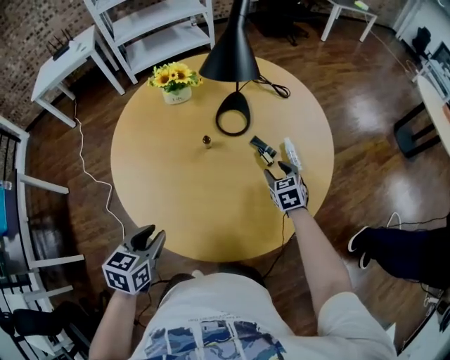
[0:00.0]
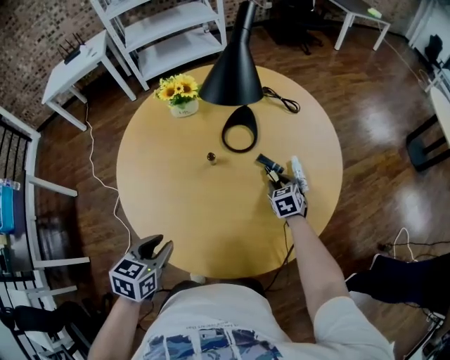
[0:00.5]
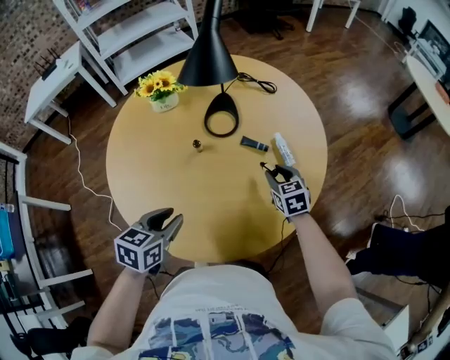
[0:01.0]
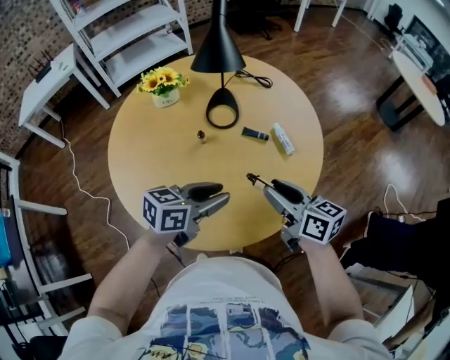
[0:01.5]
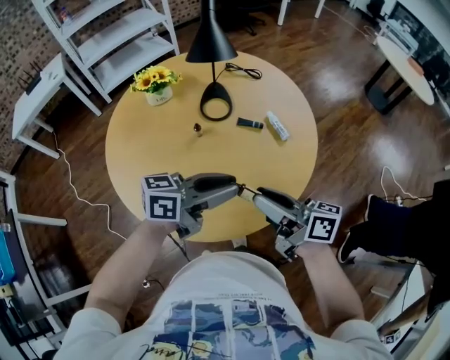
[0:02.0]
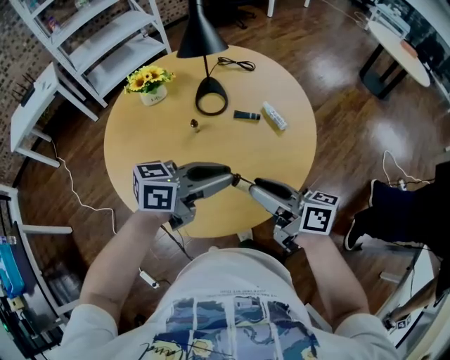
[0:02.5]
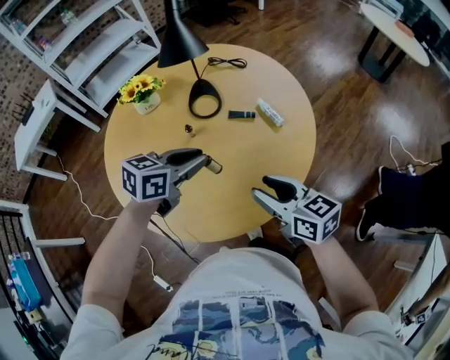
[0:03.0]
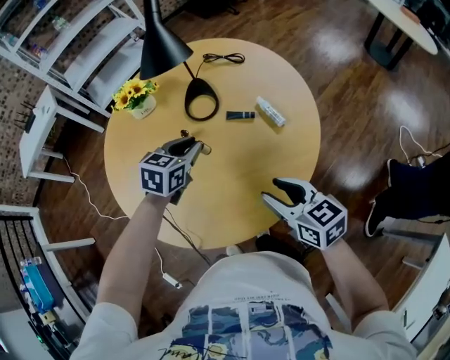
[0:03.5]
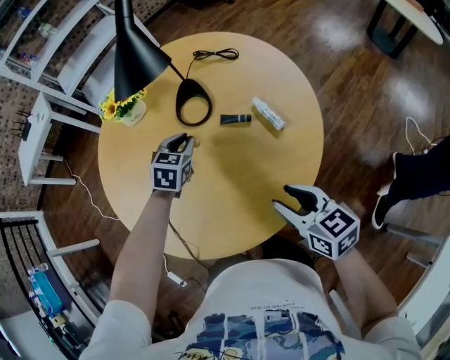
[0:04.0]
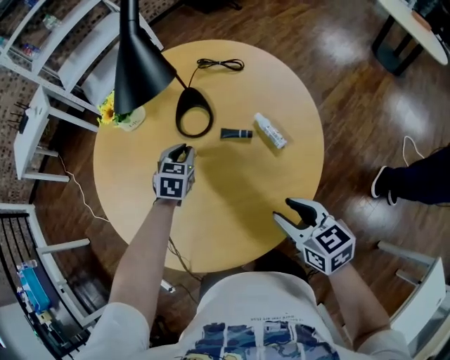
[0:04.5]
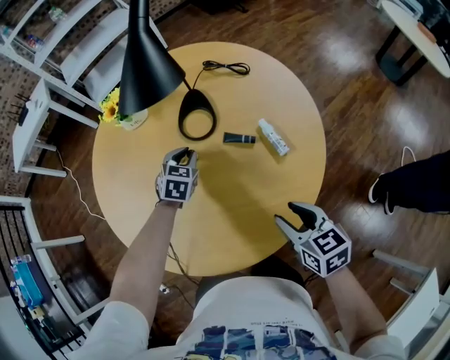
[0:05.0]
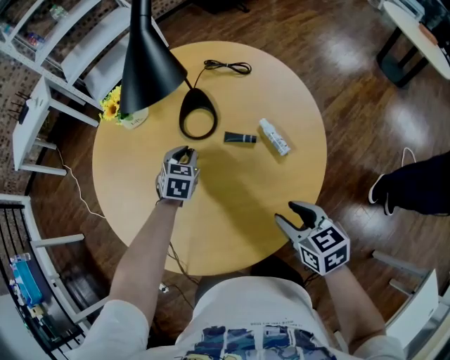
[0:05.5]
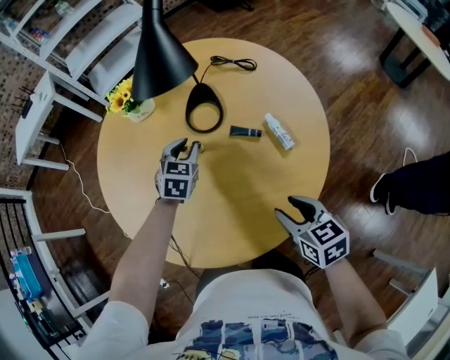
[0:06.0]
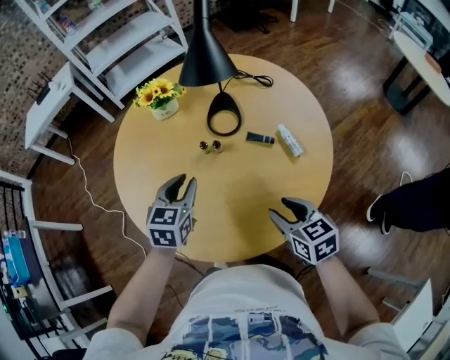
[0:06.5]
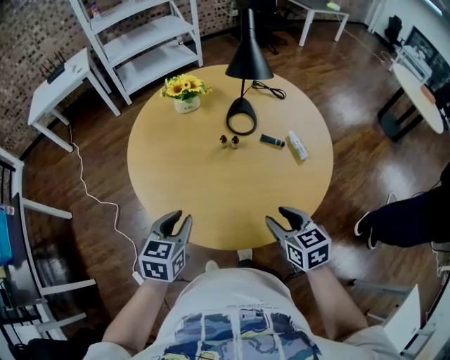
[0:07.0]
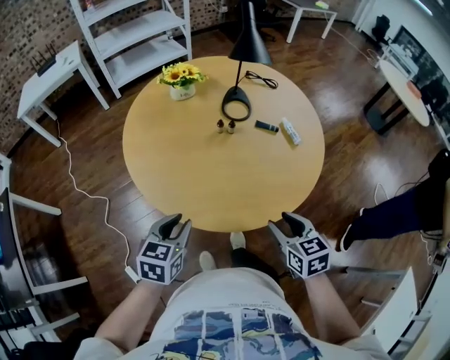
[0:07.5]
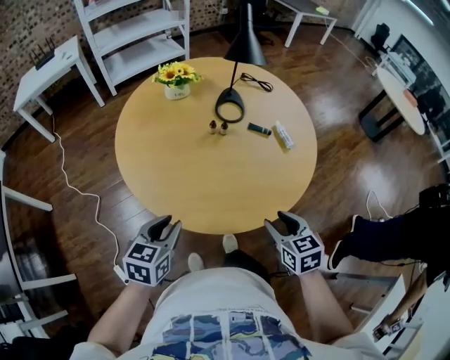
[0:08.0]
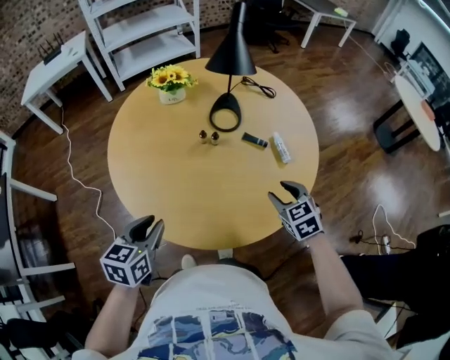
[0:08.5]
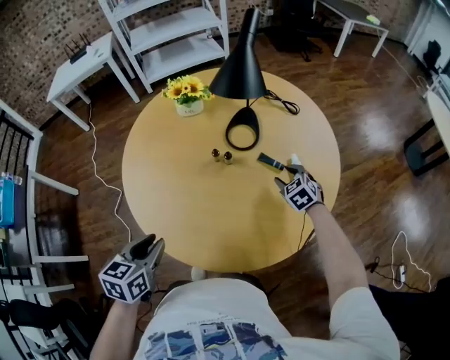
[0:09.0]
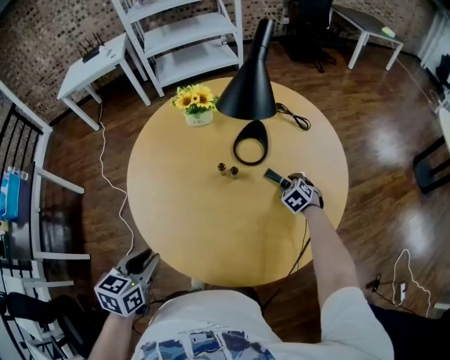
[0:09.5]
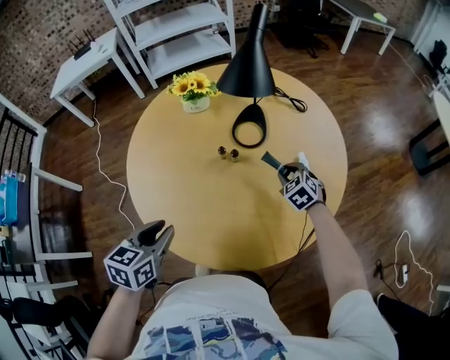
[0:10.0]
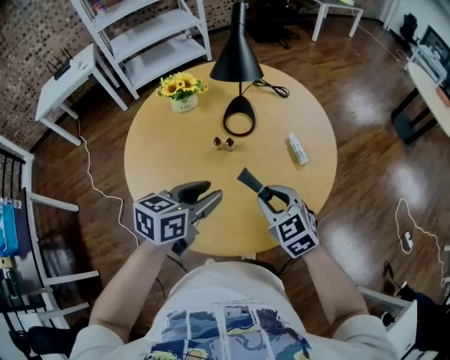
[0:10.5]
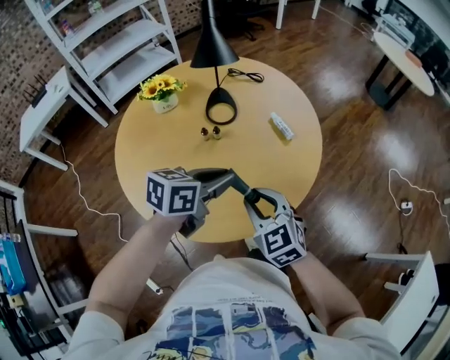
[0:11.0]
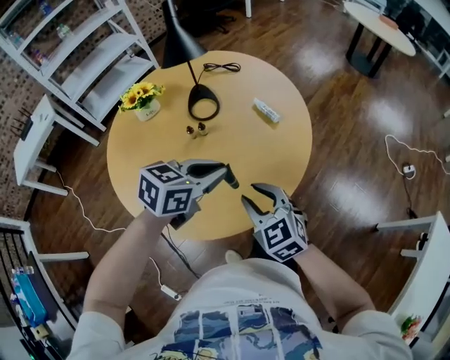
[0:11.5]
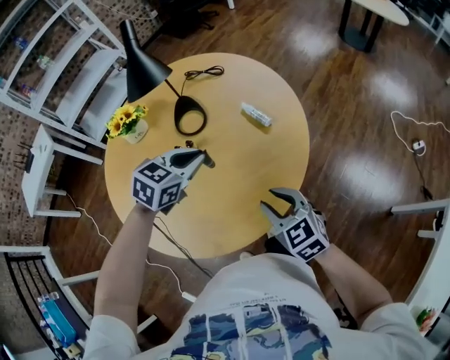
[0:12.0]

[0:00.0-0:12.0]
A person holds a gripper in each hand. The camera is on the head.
0:00.0 to 0:02.0: The left gripper goes about 20 cm to the right and upward, and angles its fingers upward, by roughly 40 degrees, while the right gripper shifts about 35 cm backward and upward, and tips its fingers upward by about 40 degrees.
0:02.0 to 0:04.0: The left gripper shifts some 30 cm forward and downward, and tilts its fingers some 40 degrees downward; the right gripper shifts approximately 20 cm to the right, downward and forward, and swivels some 40 degrees.
0:06.0 to 0:08.0: The left gripper goes about 50 cm backward and to the left, and changes its angle by about 30 degrees; the right gripper shifts roughly 25 cm backward and to the left.
0:08.0 to 0:10.0: The left gripper heads forward and to the right, covering about 15 cm; the right gripper goes some 35 cm forward, swivels some 40 degrees, and closes.
0:10.0 to 0:12.0: The right gripper ends up approximately 30 cm from where it was, and changes its angle by approximately 40 degrees. Meanwhile the left gripper moves some 25 cm, and rotates approximately 60 degrees.

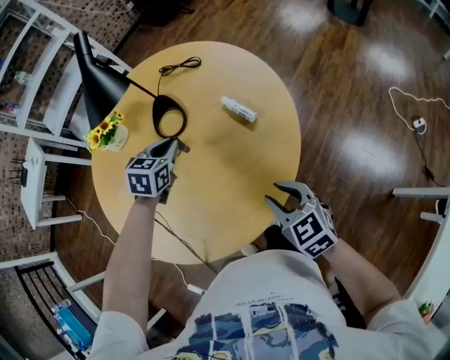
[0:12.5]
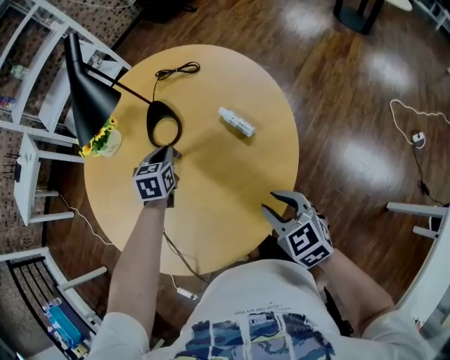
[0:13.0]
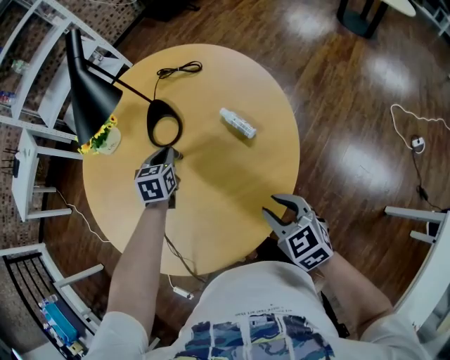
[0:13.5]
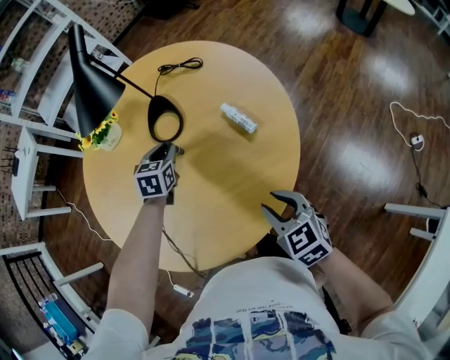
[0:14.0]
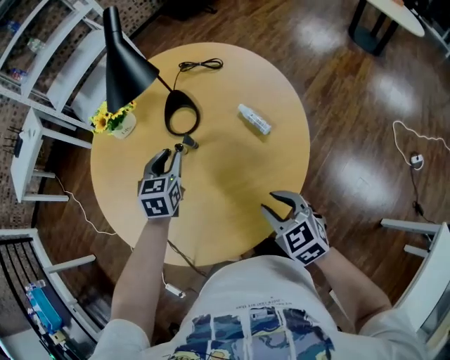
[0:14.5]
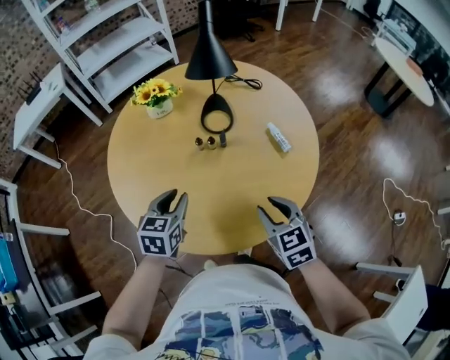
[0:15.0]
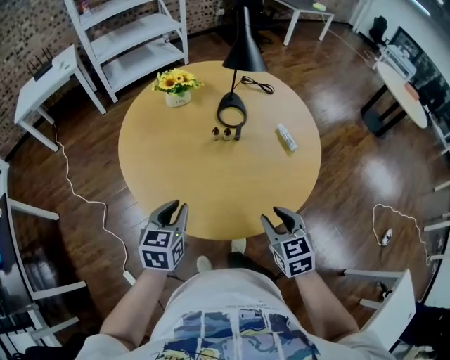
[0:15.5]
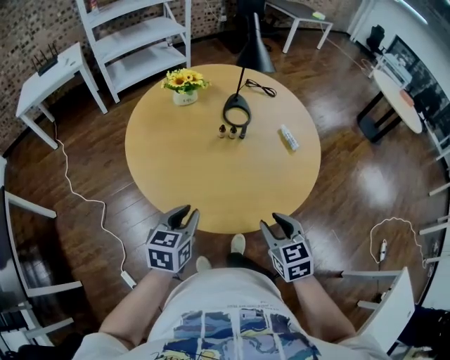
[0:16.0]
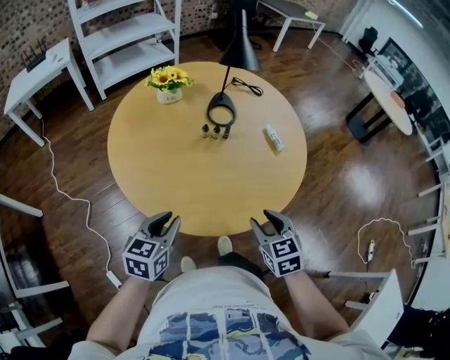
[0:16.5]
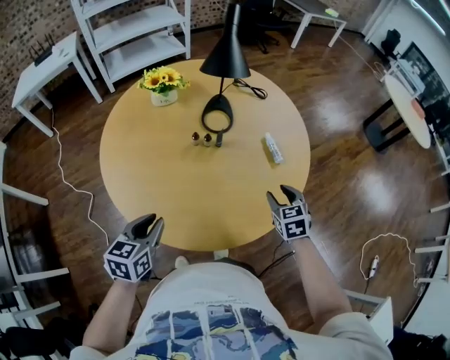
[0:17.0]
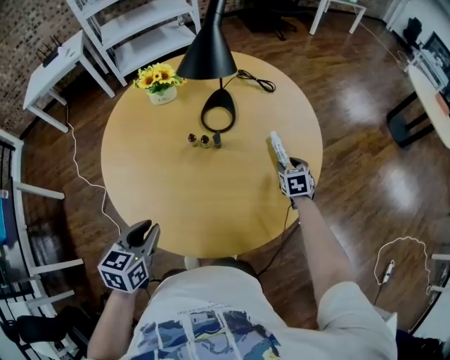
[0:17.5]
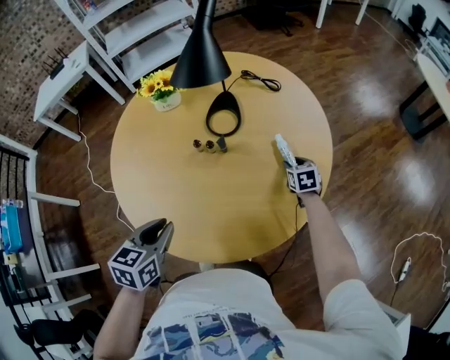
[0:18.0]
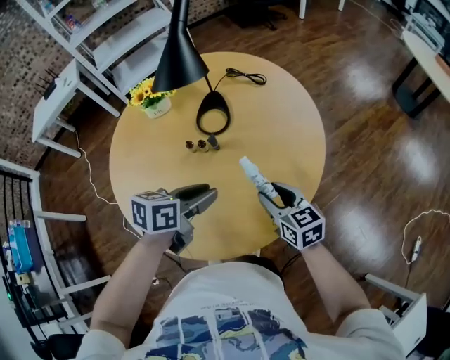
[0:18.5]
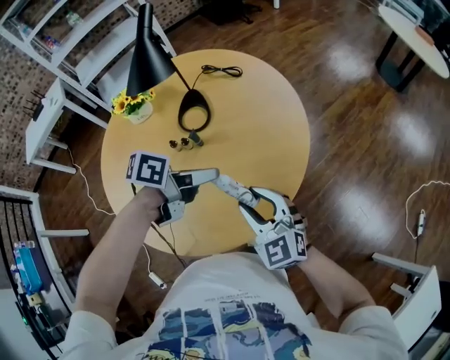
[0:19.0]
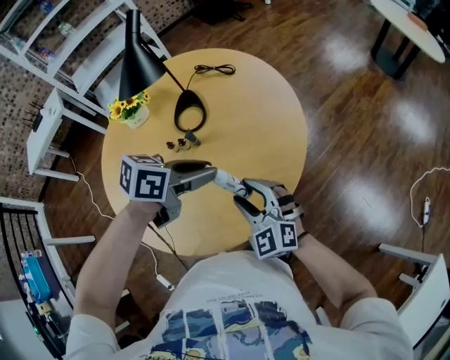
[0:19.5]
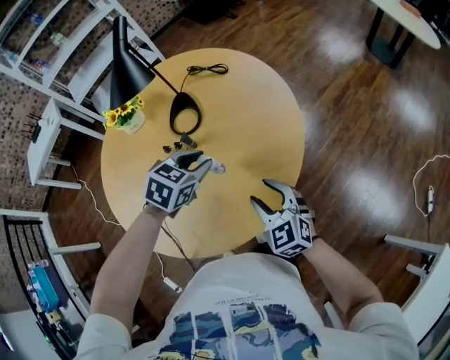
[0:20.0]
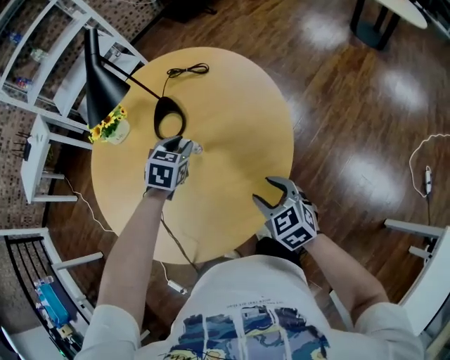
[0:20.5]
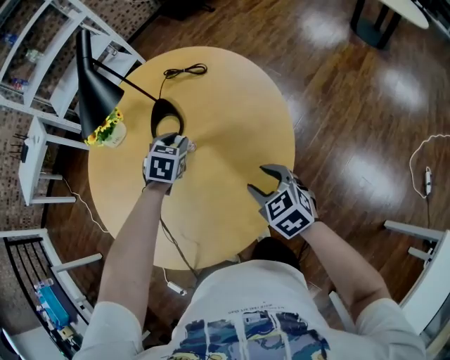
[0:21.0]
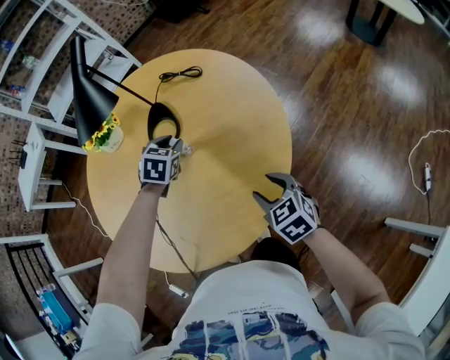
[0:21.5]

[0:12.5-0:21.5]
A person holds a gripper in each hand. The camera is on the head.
0:12.5 to 0:14.5: The left gripper heads to the left, covering roughly 5 cm, rotates some 20 degrees, and opens its fingers.
0:14.5 to 0:17.0: The right gripper goes backward and returns, roughly 15 cm each way. Meanwhile the left gripper heads backward and to the left, covering some 35 cm, and swivels approximately 20 degrees.
0:17.0 to 0:19.5: The right gripper moves some 15 cm downward and comes back, and turns by about 40 degrees. Meanwhile the left gripper moves roughly 35 cm, and turns by about 50 degrees.
0:19.5 to 0:21.5: The left gripper ends up roughly 25 cm from where it was, and swivels some 50 degrees, while the right gripper moves some 15 cm, and swivels approximately 40 degrees.

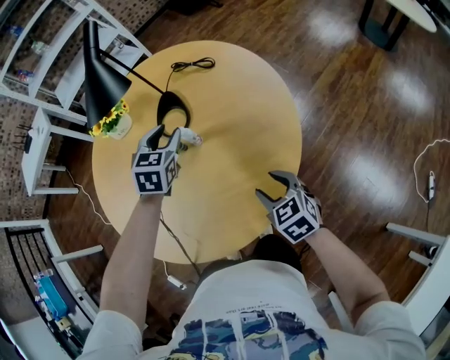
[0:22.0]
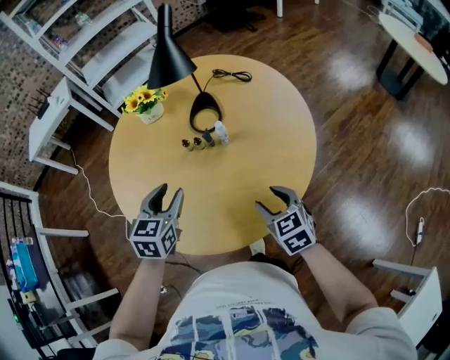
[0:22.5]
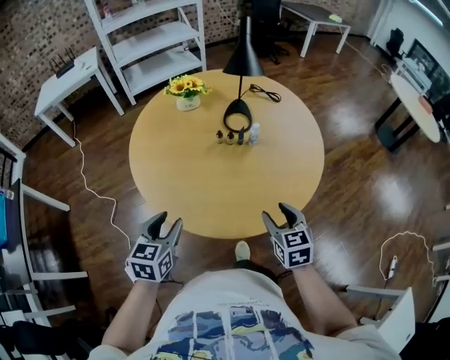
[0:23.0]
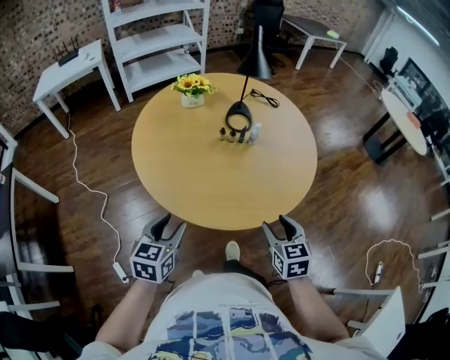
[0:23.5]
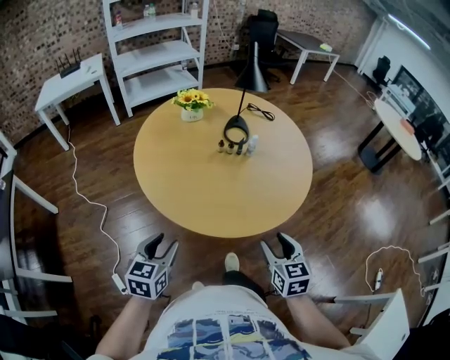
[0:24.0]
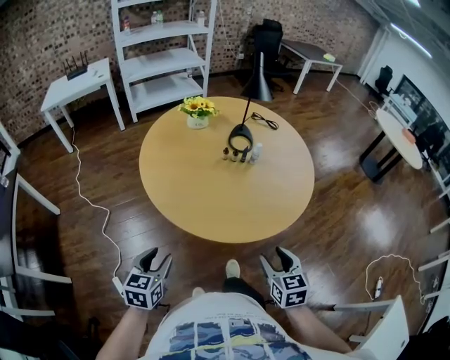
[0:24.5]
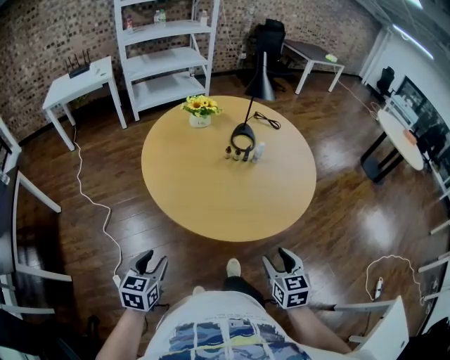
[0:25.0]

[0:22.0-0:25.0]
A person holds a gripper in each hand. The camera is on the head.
0:22.0 to 0:23.5: The left gripper shifts roughly 60 cm backward and to the left, and changes its angle by about 30 degrees, while the right gripper shifts some 35 cm backward, to the left and upward.
0:23.5 to 0:25.0: The right gripper is displaced backward by approximately 10 cm, while the left gripper travels backward and to the left by some 15 cm.

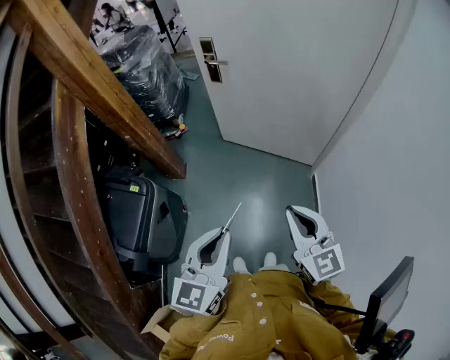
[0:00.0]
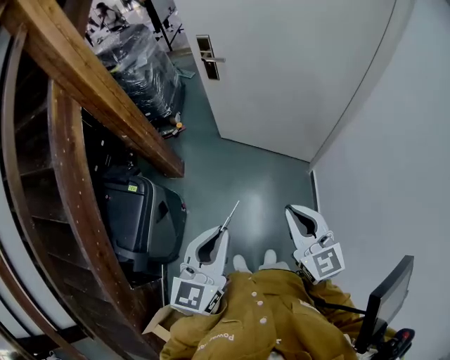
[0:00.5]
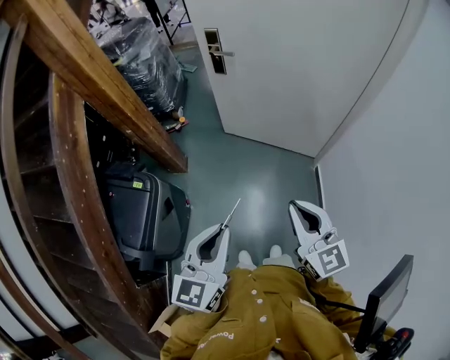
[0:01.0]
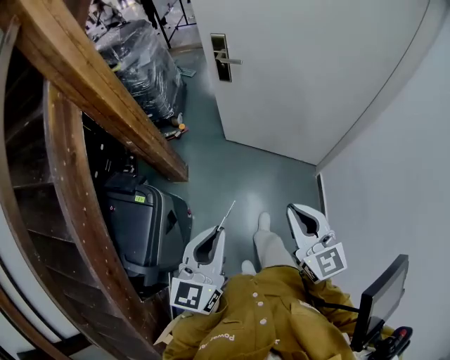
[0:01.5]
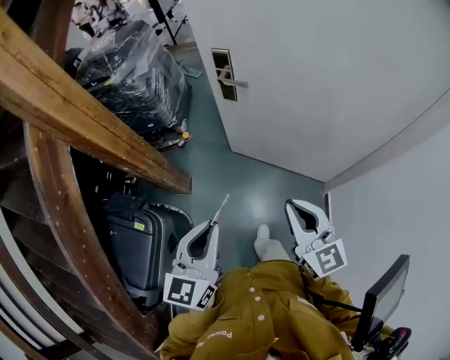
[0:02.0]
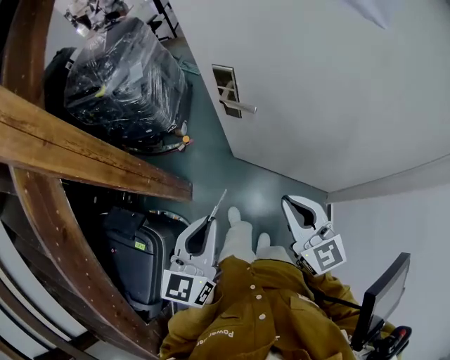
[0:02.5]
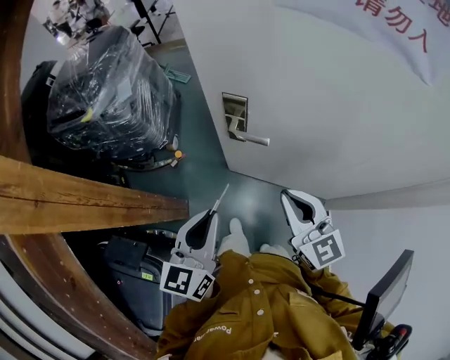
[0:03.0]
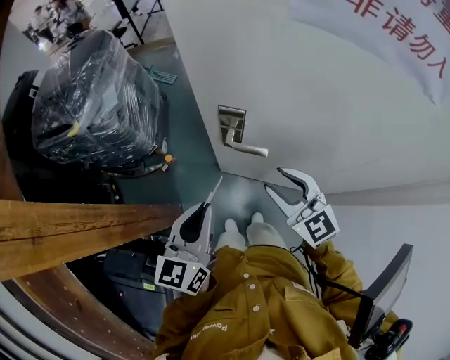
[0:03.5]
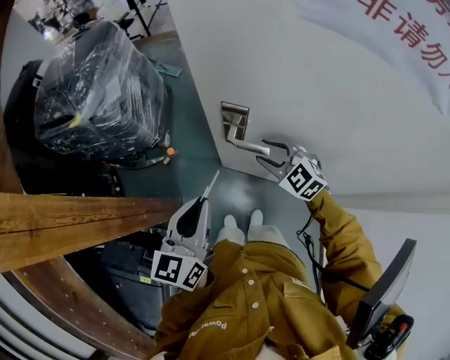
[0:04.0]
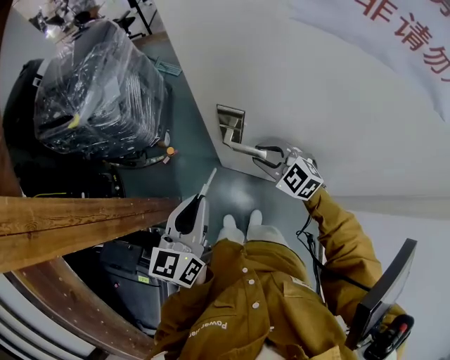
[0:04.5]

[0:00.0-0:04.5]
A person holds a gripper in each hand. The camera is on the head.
0:00.0 to 0:02.0: Both grippers travel together forward, about 30 cm.
0:02.0 to 0:04.5: Both grippers move forward, approximately 40 cm. The right gripper angles its fingers downward, by about 30 degrees, and opens its fingers.
